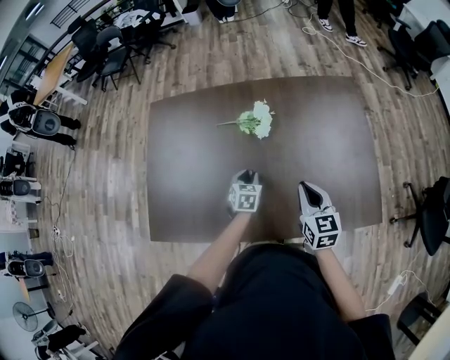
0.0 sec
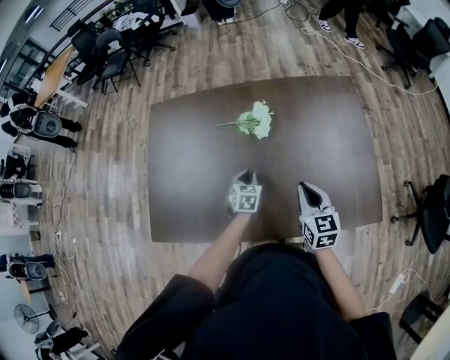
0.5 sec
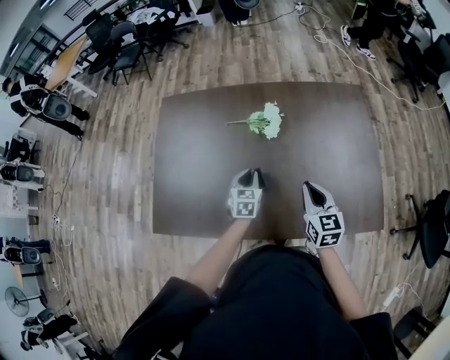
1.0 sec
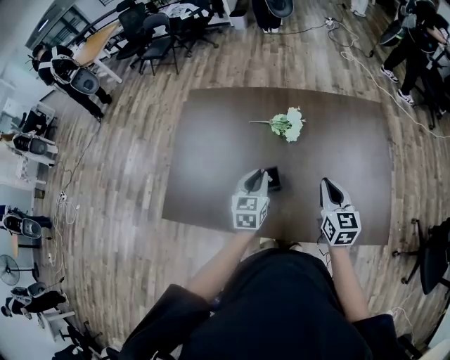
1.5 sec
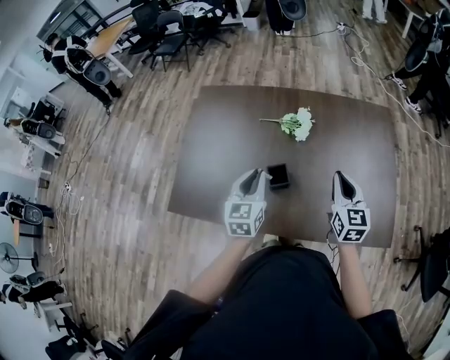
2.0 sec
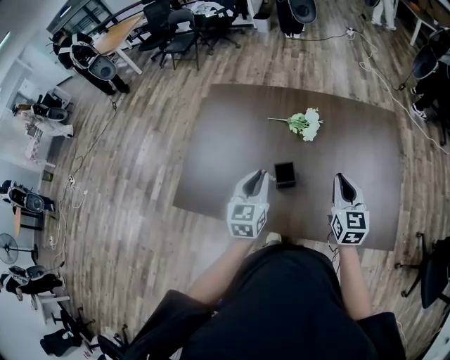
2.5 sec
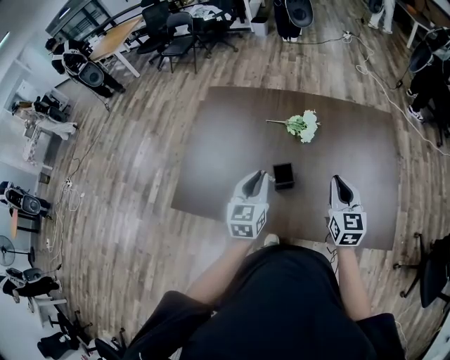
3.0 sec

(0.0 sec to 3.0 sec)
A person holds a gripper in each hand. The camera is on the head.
0.0 sec - 1.5 sec: The left gripper shifts approximately 20 cm upward and backward, and changes its angle by approximately 20 degrees.
1.5 sec - 3.0 sec: The left gripper goes about 10 cm backward, upward and to the left, while the right gripper moves roughly 5 cm.

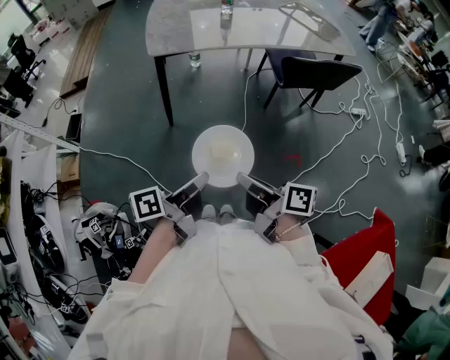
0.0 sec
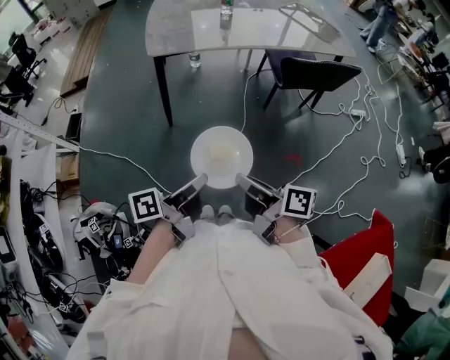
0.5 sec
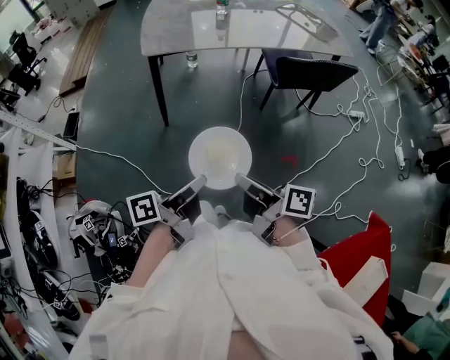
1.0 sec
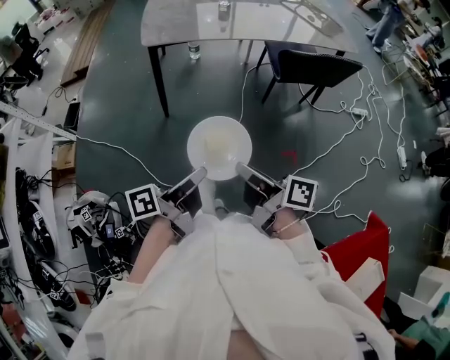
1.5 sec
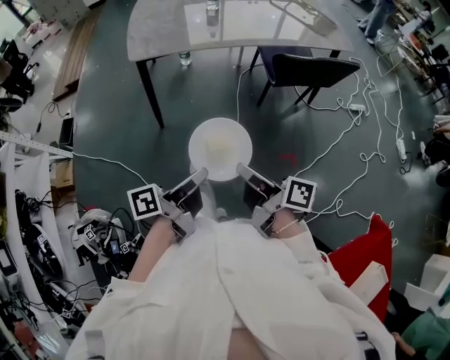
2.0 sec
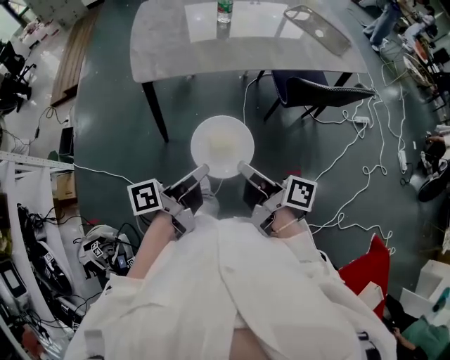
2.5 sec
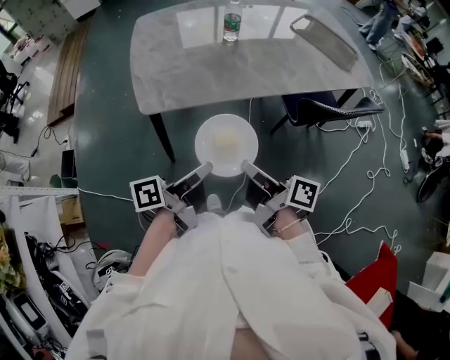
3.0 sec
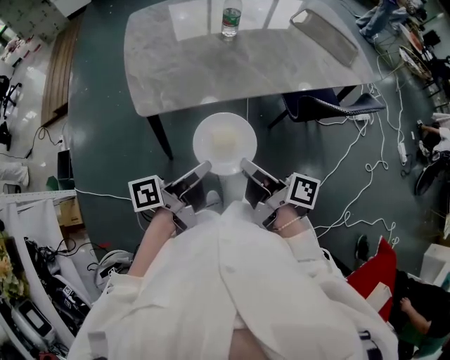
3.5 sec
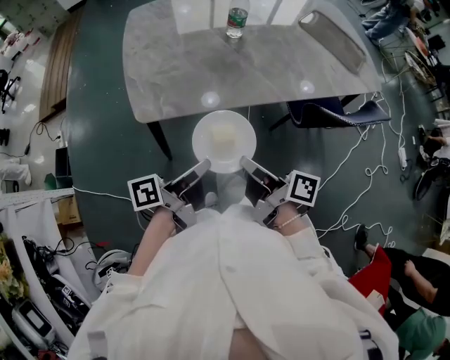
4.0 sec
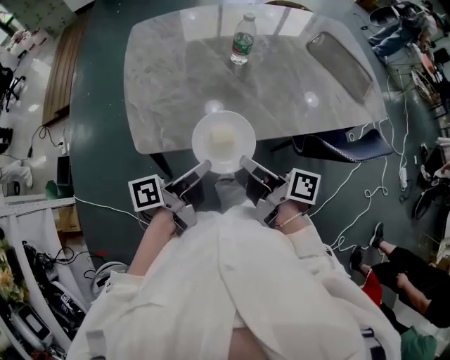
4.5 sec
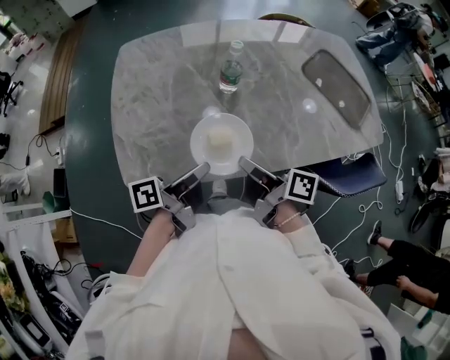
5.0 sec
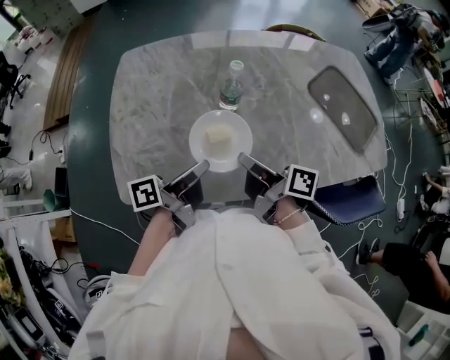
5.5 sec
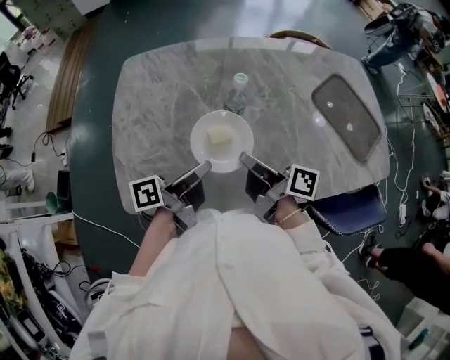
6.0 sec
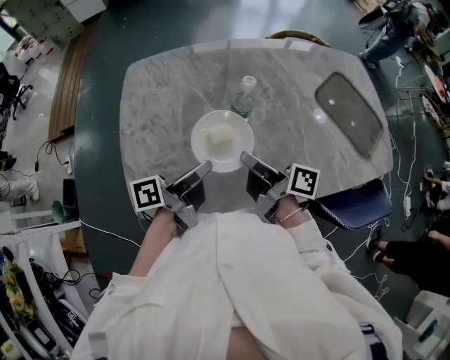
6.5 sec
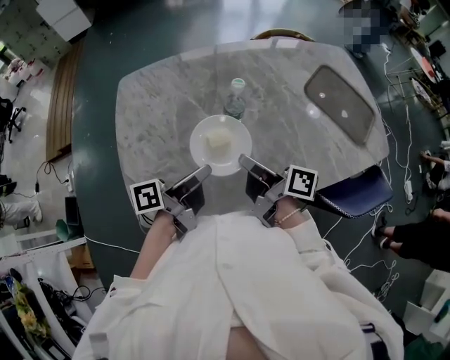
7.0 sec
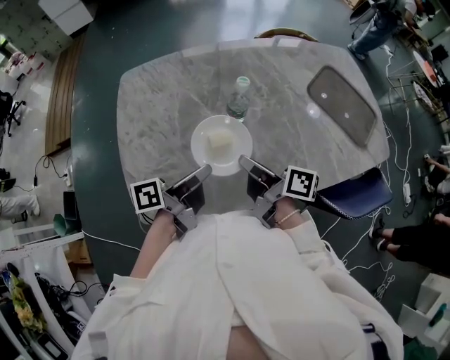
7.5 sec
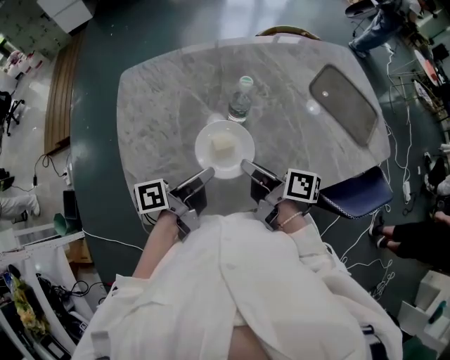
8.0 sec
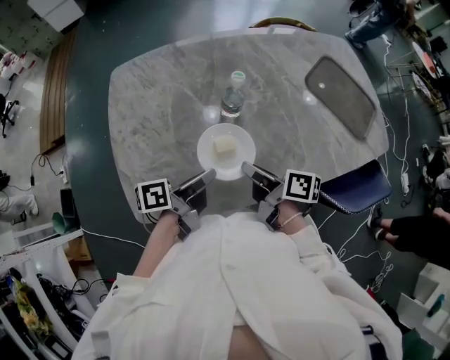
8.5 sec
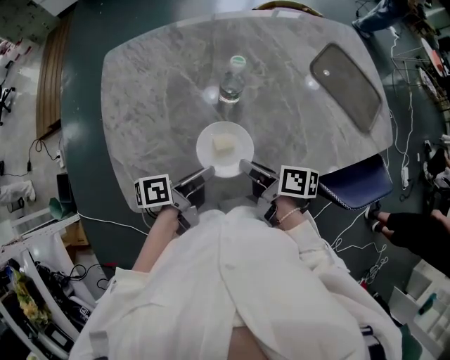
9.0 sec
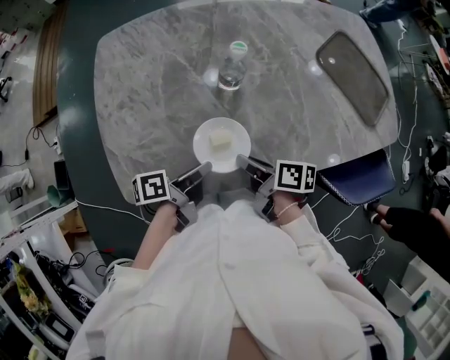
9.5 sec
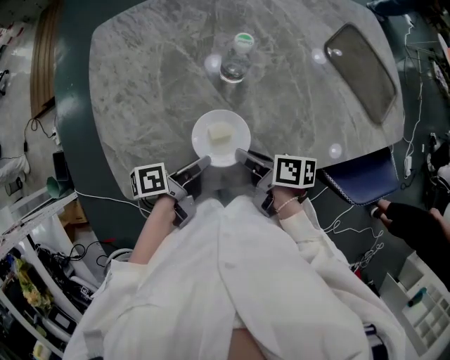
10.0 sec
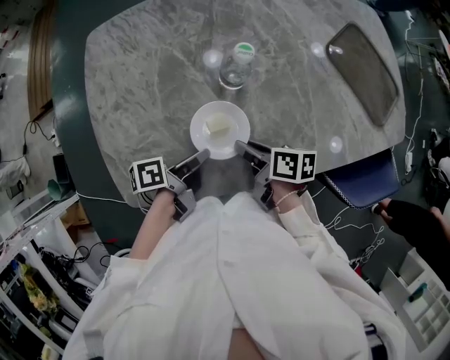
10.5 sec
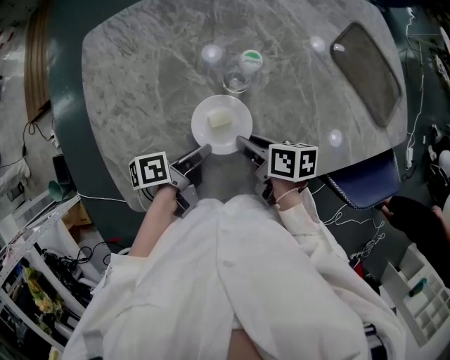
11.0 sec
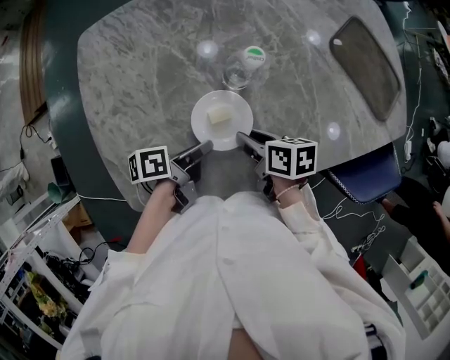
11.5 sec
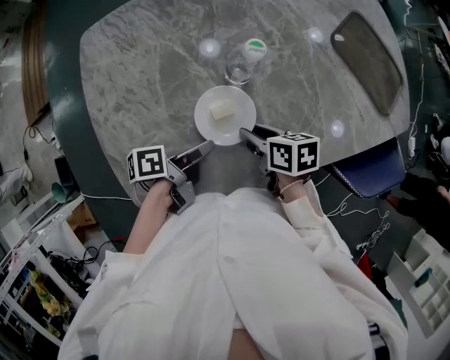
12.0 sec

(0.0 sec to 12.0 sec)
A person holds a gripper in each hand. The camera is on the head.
0.0 sec - 2.0 sec: The right gripper shifts by roughly 10 cm.
2.0 sec - 4.0 sec: The right gripper ends up roughly 35 cm from where it was.
4.0 sec - 6.0 sec: The right gripper moves about 35 cm.
8.0 sec - 10.0 sec: The right gripper moves downward, roughly 10 cm.
10.0 sec - 12.0 sec: The right gripper ends up some 5 cm from where it was, and changes its angle by about 20 degrees.

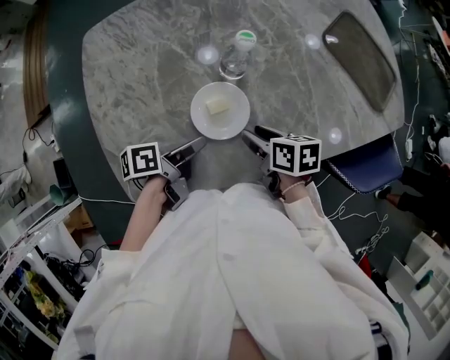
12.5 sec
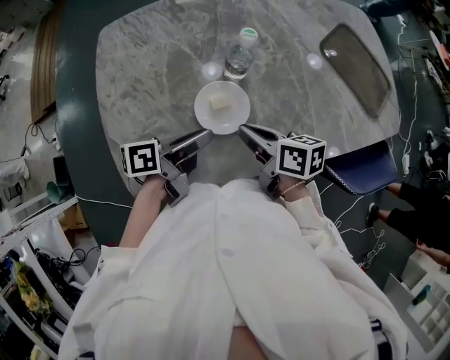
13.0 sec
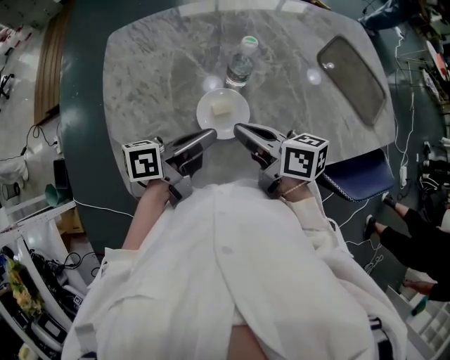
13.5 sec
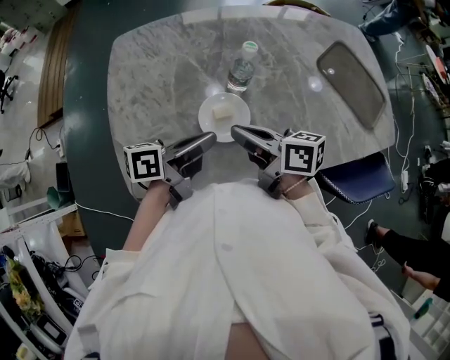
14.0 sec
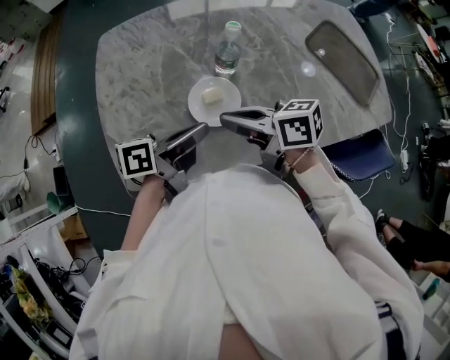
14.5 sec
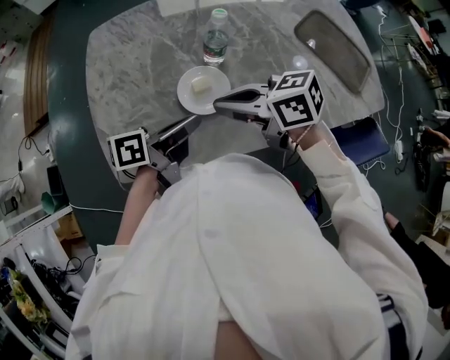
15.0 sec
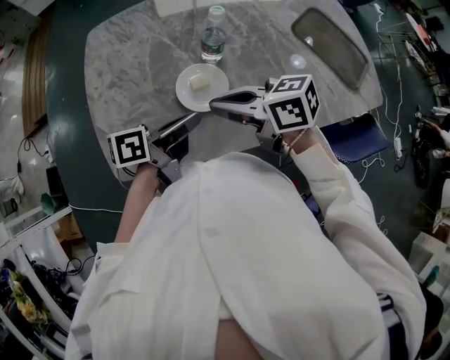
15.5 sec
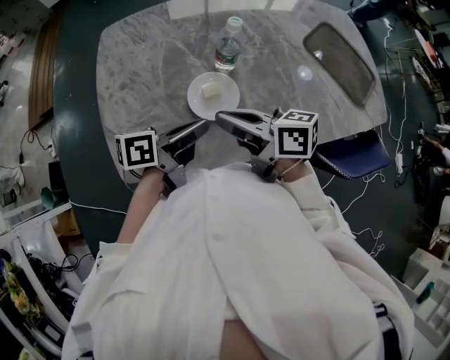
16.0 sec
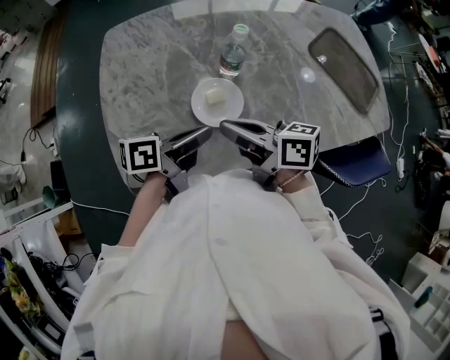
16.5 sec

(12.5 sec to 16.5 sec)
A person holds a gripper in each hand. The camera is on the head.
12.5 sec - 14.5 sec: The right gripper heads upward, covering about 15 cm, tips its fingers upward by some 30 degrees, and closes its fingers.

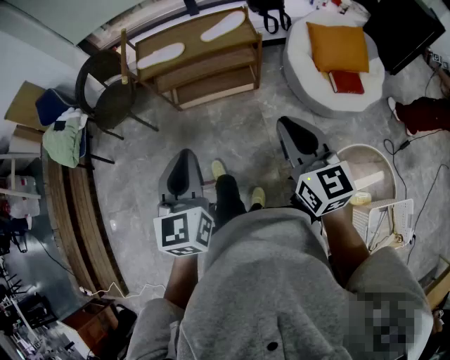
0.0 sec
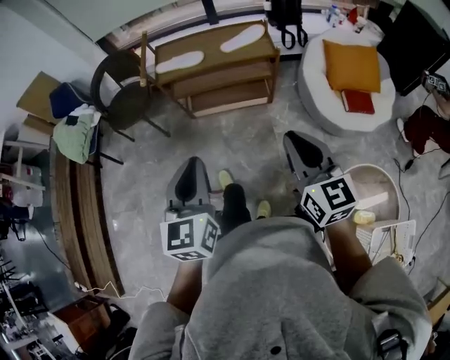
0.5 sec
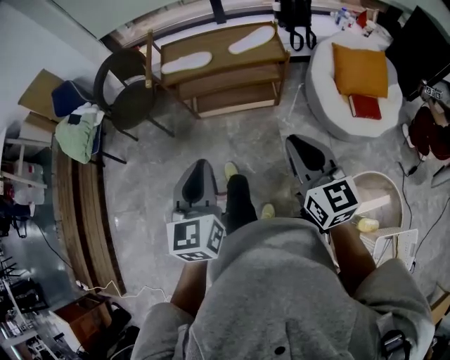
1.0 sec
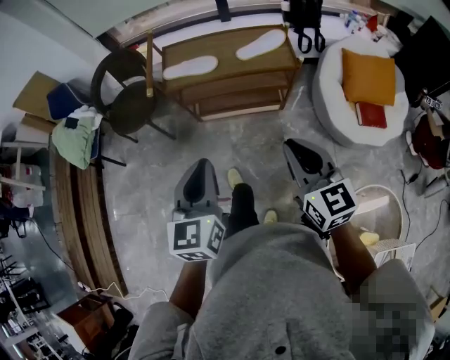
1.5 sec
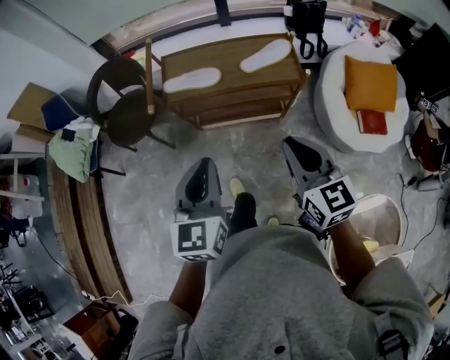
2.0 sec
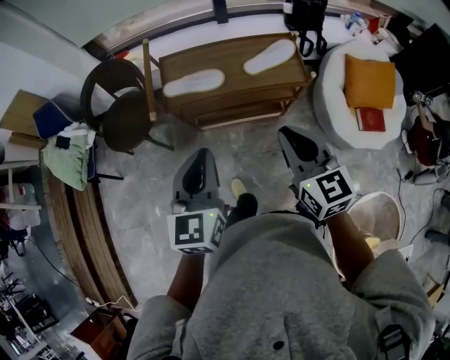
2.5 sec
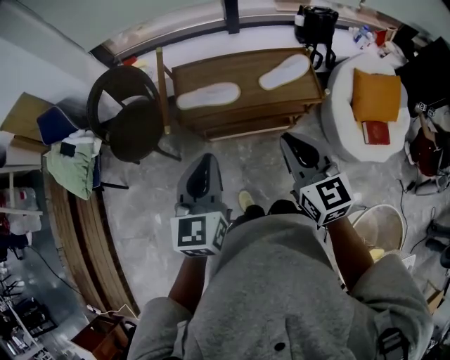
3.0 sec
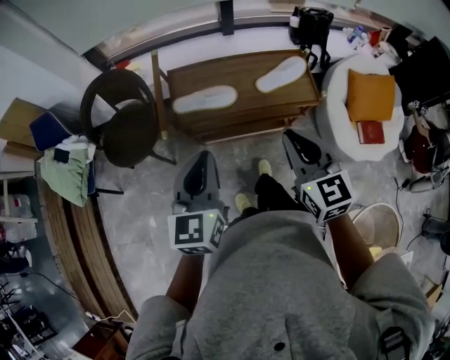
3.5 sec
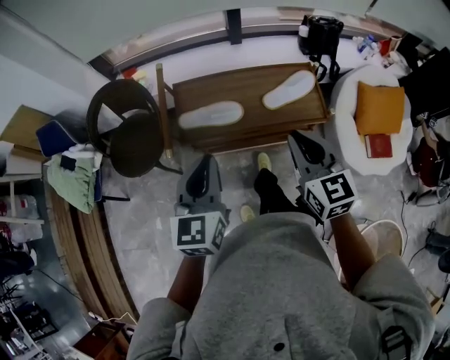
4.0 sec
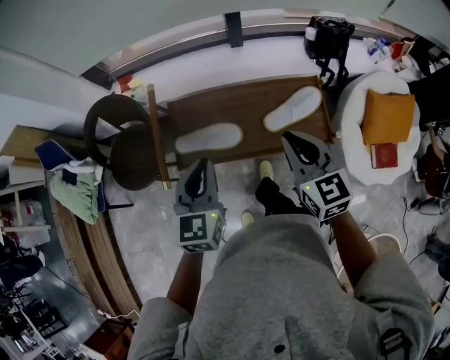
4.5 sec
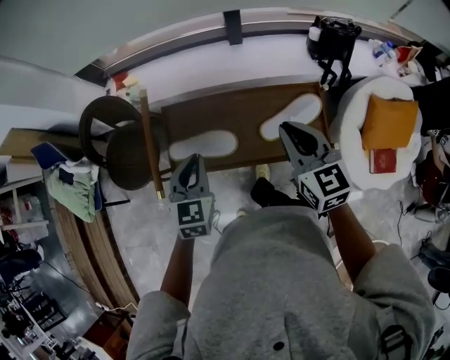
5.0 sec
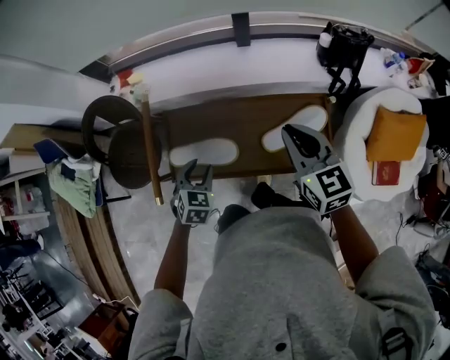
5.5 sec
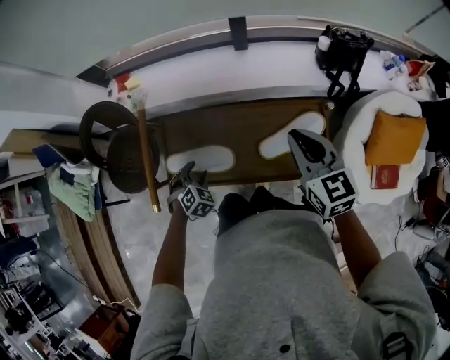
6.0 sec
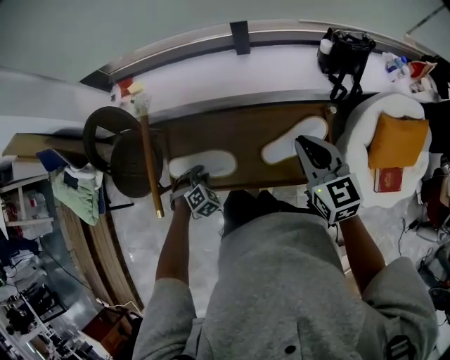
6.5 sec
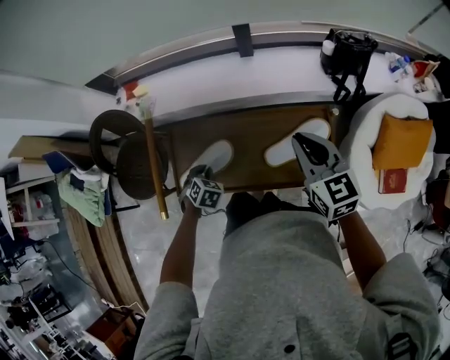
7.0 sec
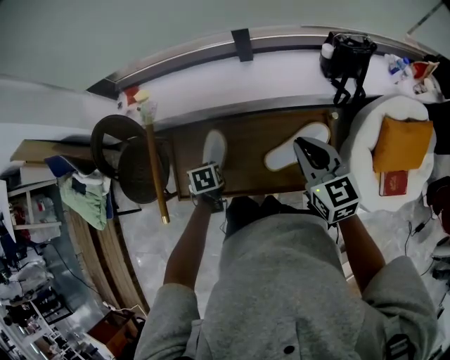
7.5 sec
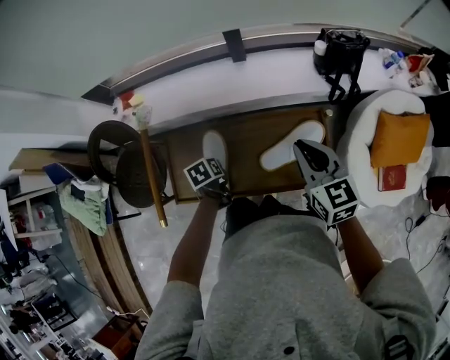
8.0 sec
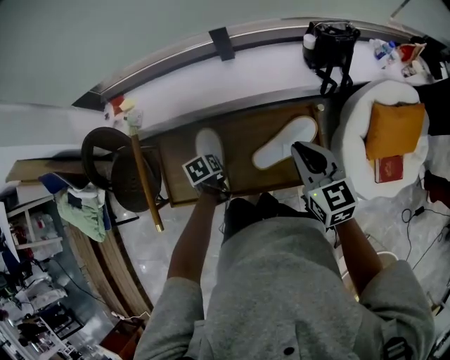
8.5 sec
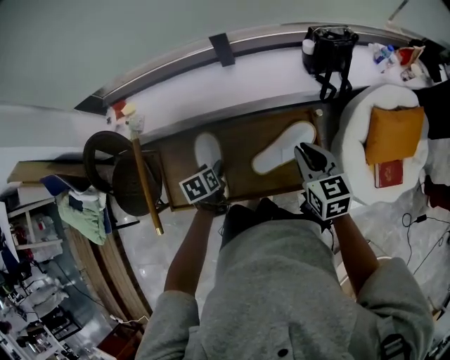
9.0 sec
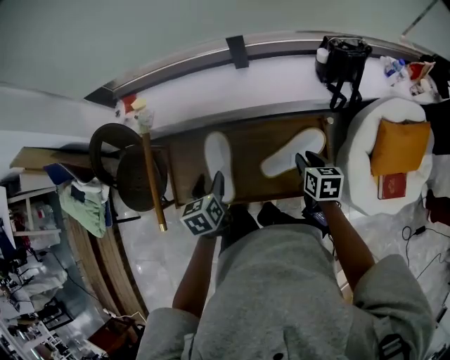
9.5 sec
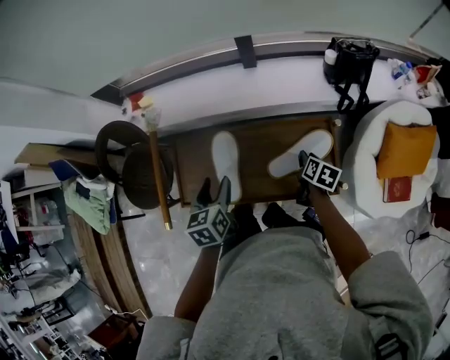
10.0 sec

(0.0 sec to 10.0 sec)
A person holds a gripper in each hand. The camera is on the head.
0.0 sec - 2.0 sec: Both grippers move forward, about 25 cm.
2.0 sec - 4.0 sec: The grippers both shift forward by about 20 cm.
4.0 sec - 6.0 sec: The left gripper moves downward and forward, some 35 cm, points its fingers roughly 40 degrees further downward, and opens its fingers. Meanwhile the right gripper heads forward and to the right, covering some 30 cm.
6.0 sec - 8.0 sec: The left gripper moves to the right and forward, approximately 10 cm, twists some 70 degrees counterclockwise, seen from behind, and closes its fingers.
8.0 sec - 10.0 sec: The left gripper is displaced upward by about 15 cm, turns by some 30 degrees, and opens up; the right gripper shifts approximately 25 cm downward, rotates around the line of its fingers by some 40 degrees, clockwise from behind, and opens its fingers.
